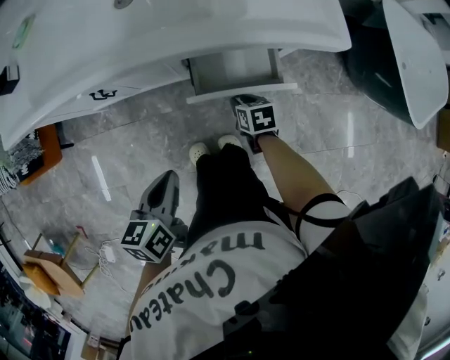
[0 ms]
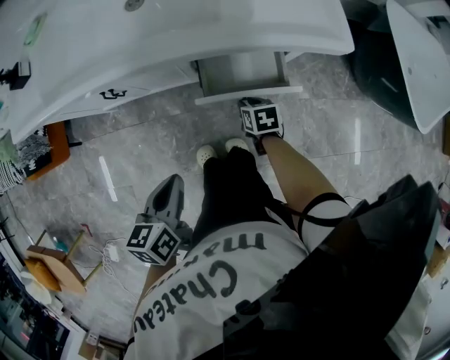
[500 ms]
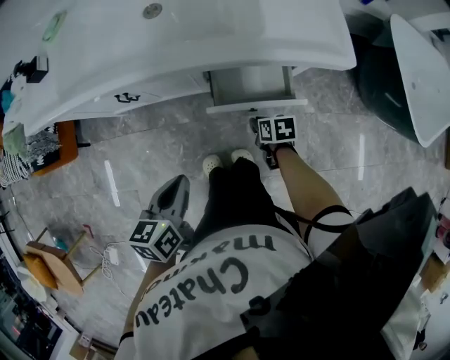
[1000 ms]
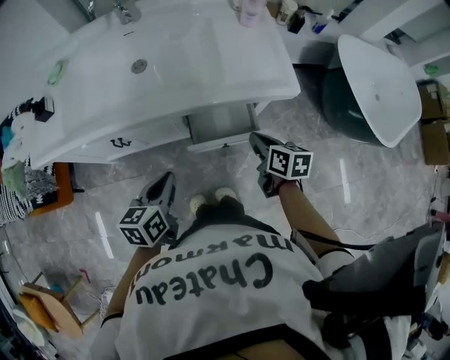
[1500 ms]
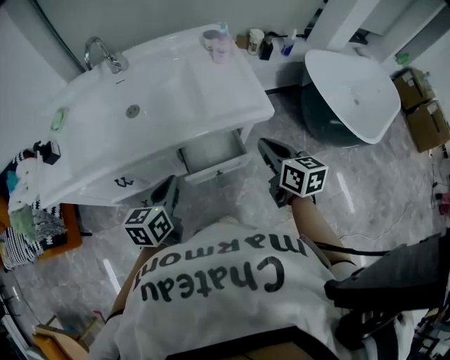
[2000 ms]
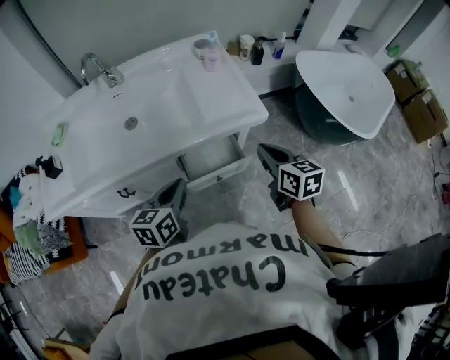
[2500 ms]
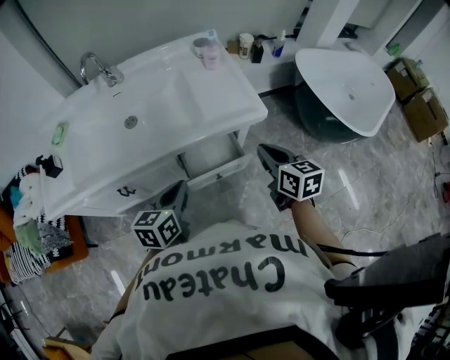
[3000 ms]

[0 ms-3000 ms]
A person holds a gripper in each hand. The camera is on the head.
0 ms to 1500 ms: The right gripper shifts approximately 20 cm upward, changes its angle by roughly 30 degrees, and closes. The left gripper shifts about 10 cm forward and upward.
1500 ms to 3000 ms: The right gripper is displaced upward and to the right by roughly 15 cm, and changes its angle by about 20 degrees, while the left gripper moves upward and to the right, some 10 cm.

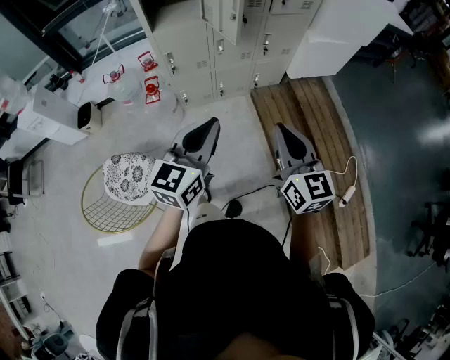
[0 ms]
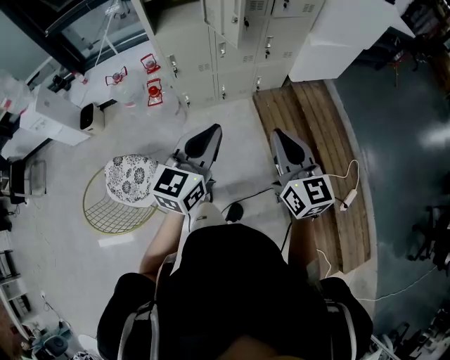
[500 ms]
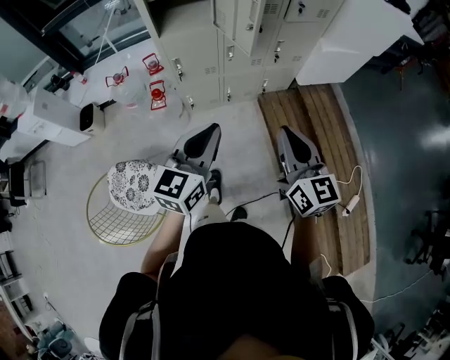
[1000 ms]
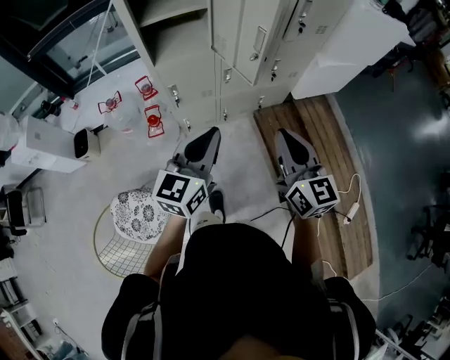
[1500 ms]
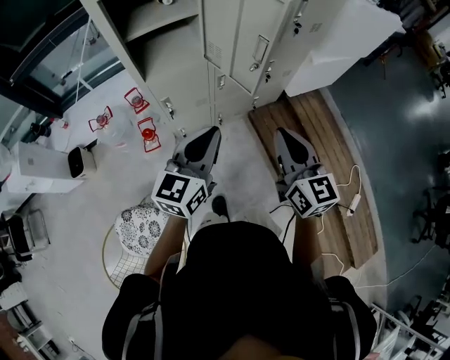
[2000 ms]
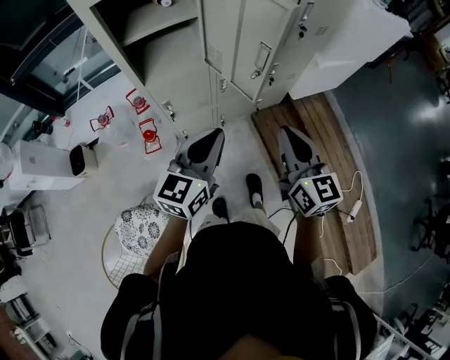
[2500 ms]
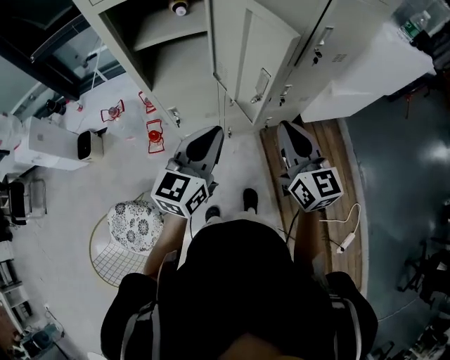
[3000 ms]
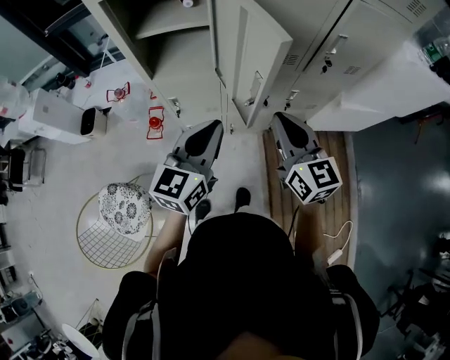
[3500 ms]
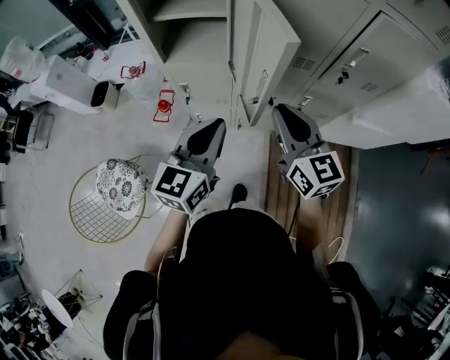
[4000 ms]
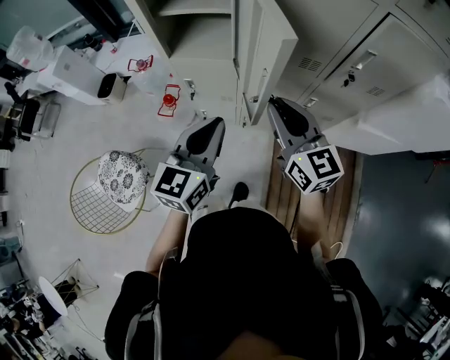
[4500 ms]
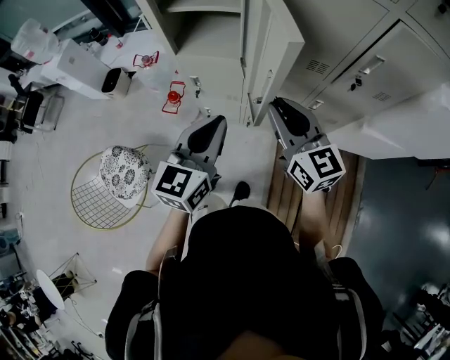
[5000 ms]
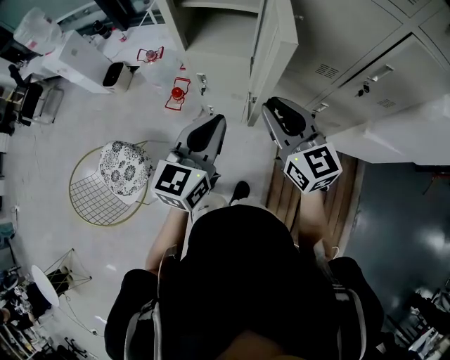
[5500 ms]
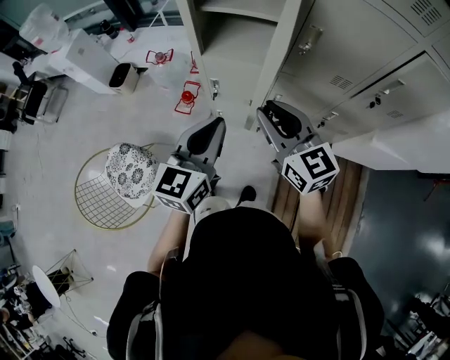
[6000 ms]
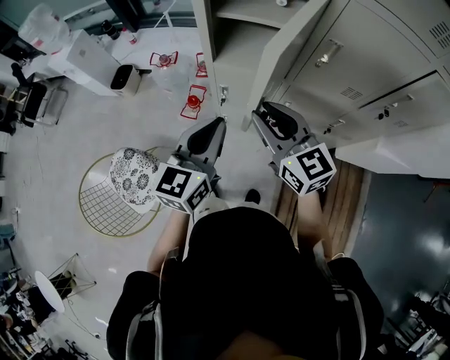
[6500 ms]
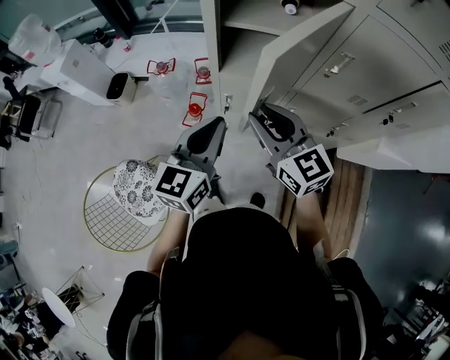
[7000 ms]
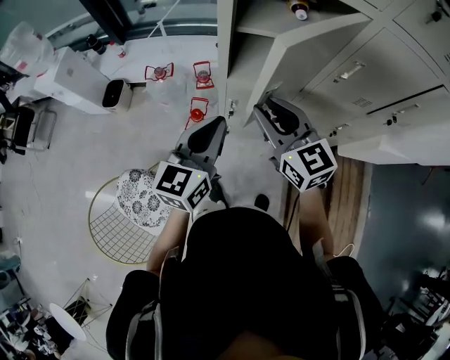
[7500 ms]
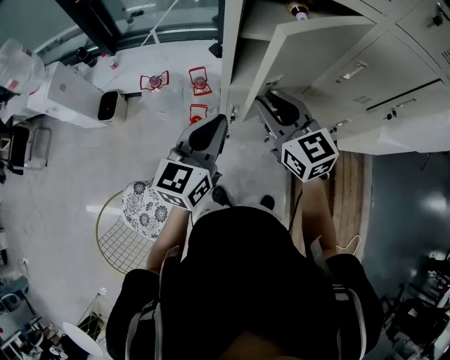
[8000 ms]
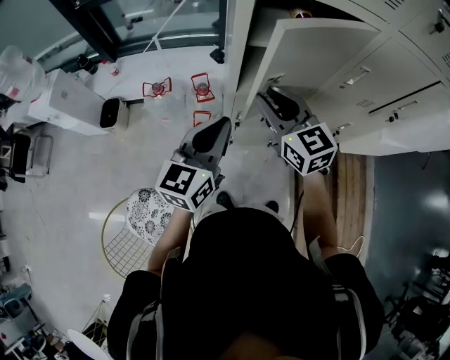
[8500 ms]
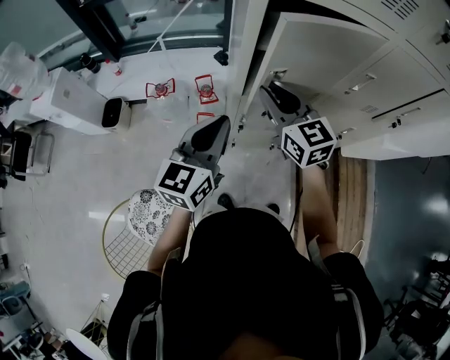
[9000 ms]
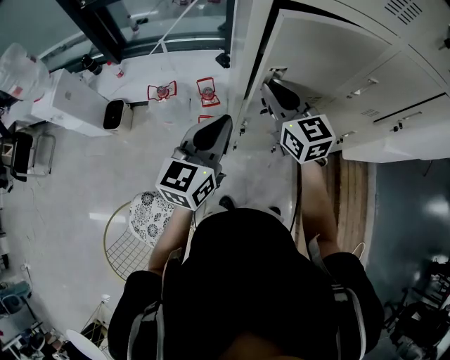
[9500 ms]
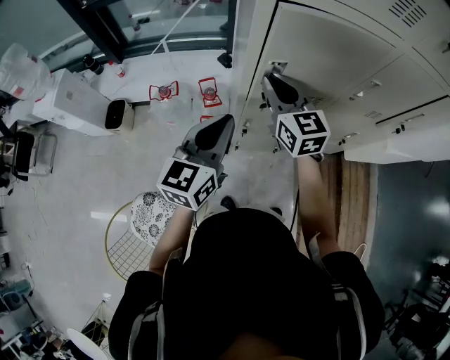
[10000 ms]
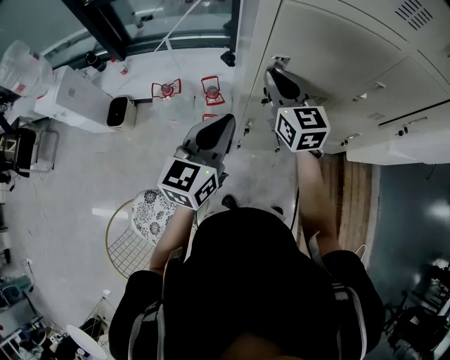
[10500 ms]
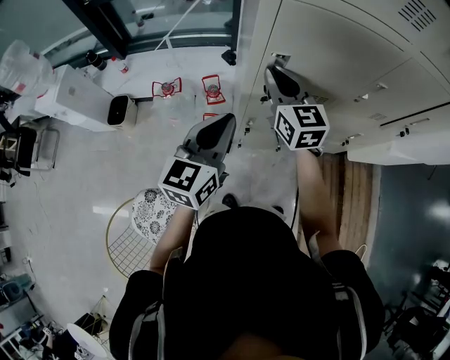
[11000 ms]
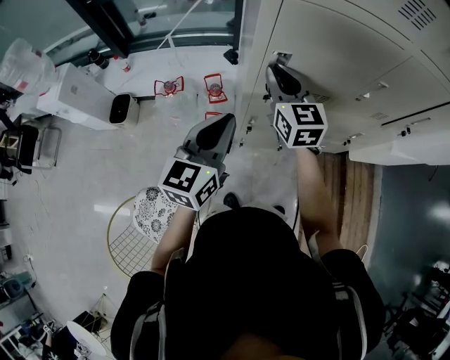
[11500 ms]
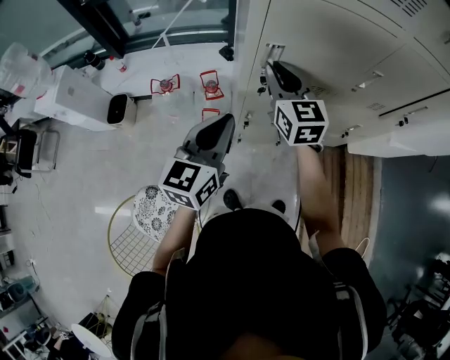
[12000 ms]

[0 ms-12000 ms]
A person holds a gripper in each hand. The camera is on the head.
0 ms to 2000 ms: Both grippers move forward and to the left, approximately 25 cm.
2000 ms to 4000 ms: The right gripper changes place by some 20 cm, and rotates approximately 30 degrees. The left gripper moves roughly 15 cm, and swivels approximately 30 degrees.
4000 ms to 6000 ms: The two grippers go roughly 10 cm to the left.
6000 ms to 8000 ms: Both grippers travel together to the left and forward, some 20 cm.
8000 ms to 10000 ms: The left gripper shifts by roughly 5 cm; the right gripper moves forward, roughly 10 cm.
10000 ms to 12000 ms: The grippers move only a little.

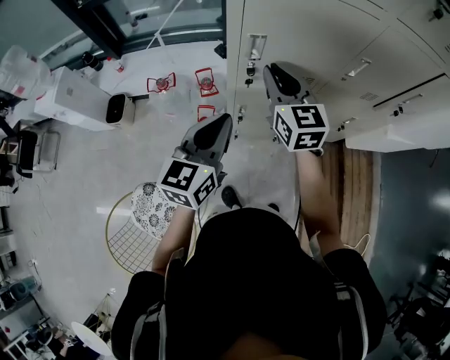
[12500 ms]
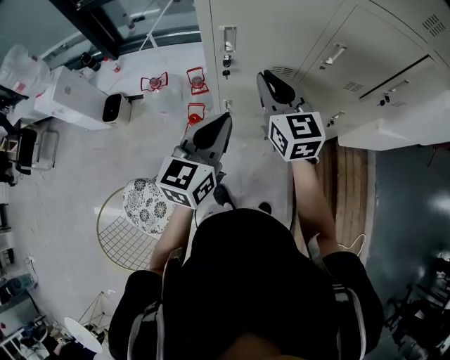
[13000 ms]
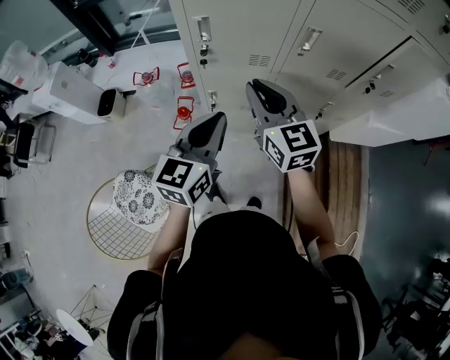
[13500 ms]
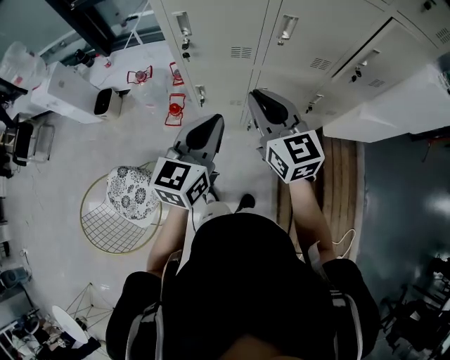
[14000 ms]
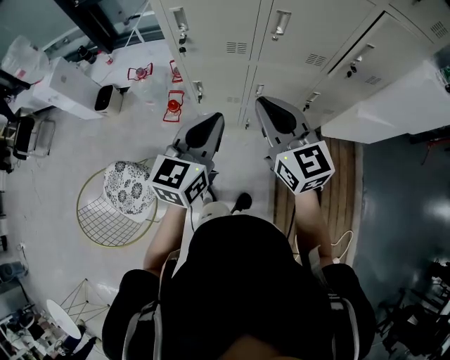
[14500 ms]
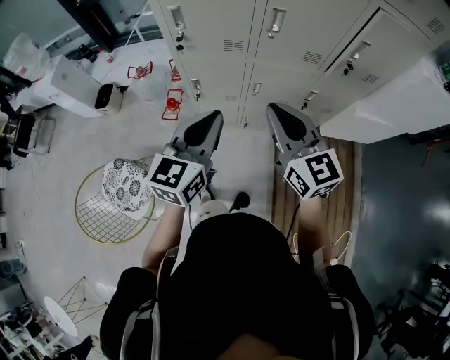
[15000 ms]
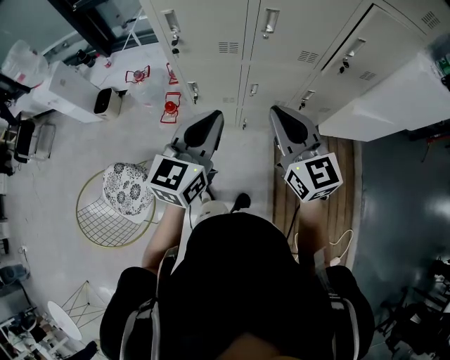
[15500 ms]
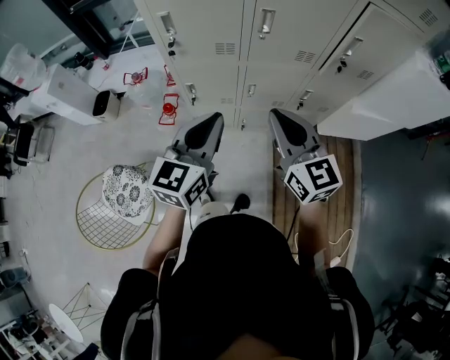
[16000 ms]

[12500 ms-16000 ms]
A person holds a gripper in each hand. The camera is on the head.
12500 ms to 14500 ms: The left gripper moves to the right and backward, approximately 25 cm. The right gripper is displaced backward and to the right by approximately 30 cm.
14500 ms to 16000 ms: The right gripper moves to the right, roughly 5 cm.

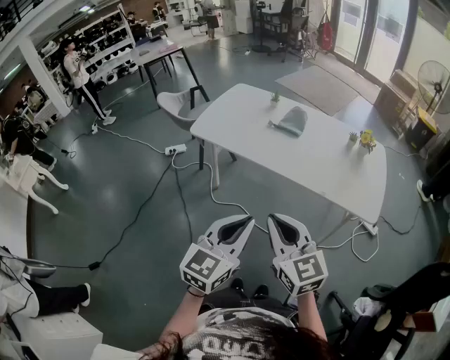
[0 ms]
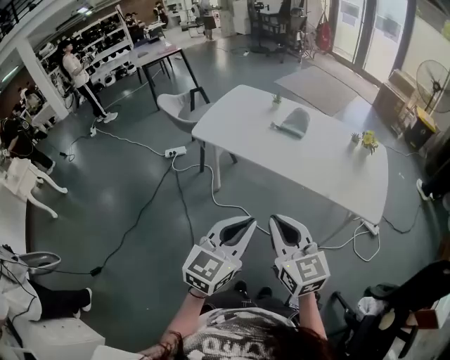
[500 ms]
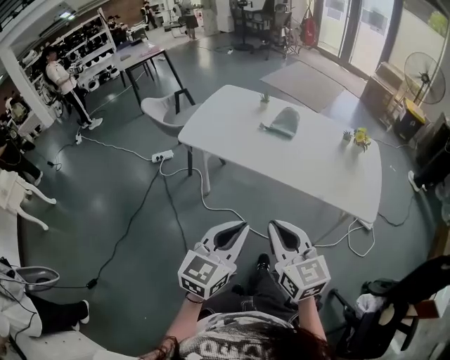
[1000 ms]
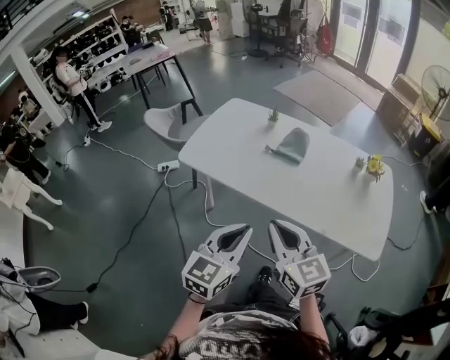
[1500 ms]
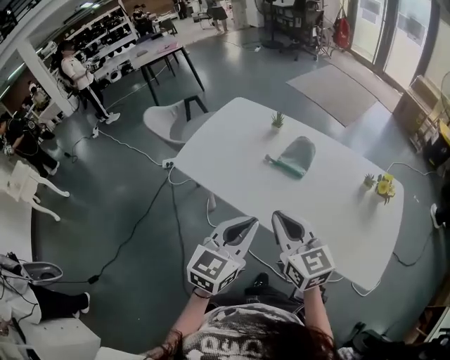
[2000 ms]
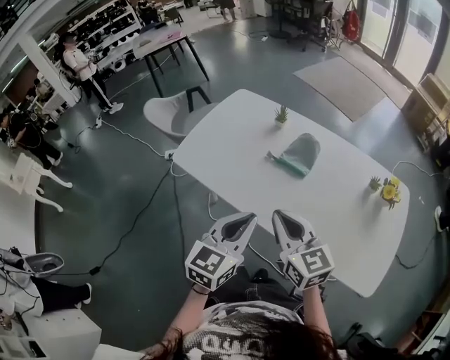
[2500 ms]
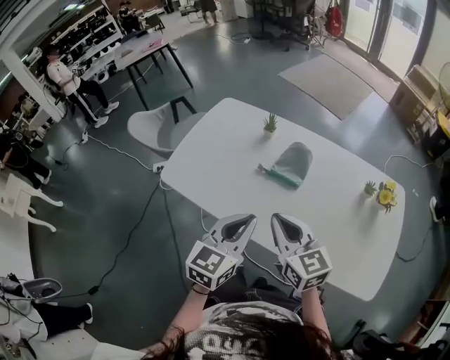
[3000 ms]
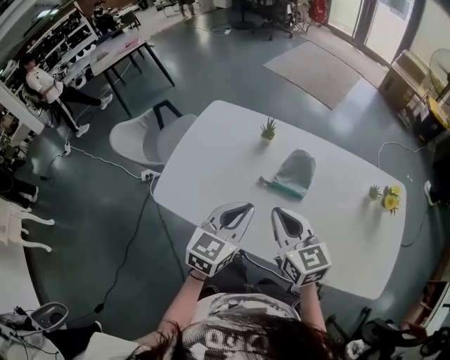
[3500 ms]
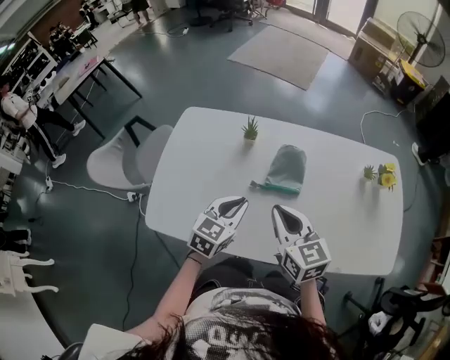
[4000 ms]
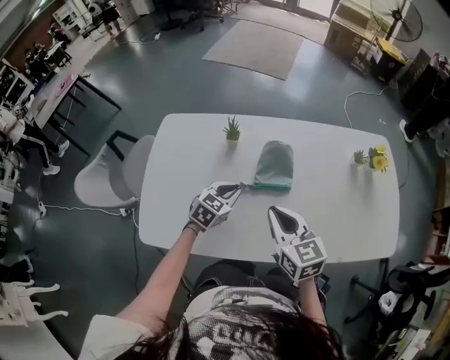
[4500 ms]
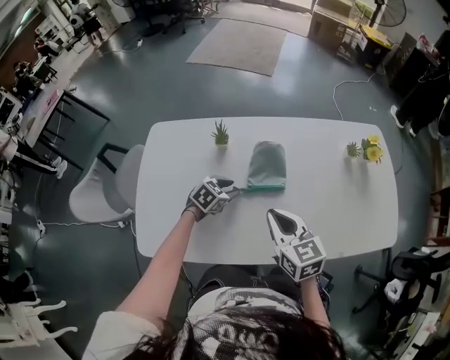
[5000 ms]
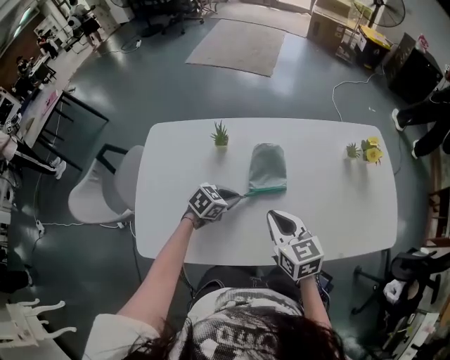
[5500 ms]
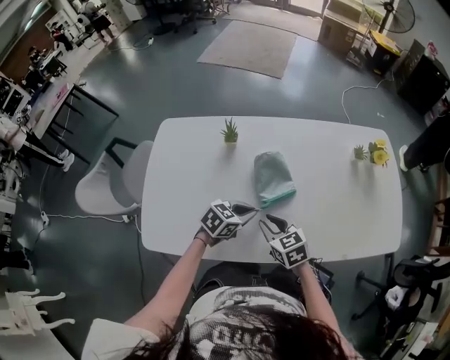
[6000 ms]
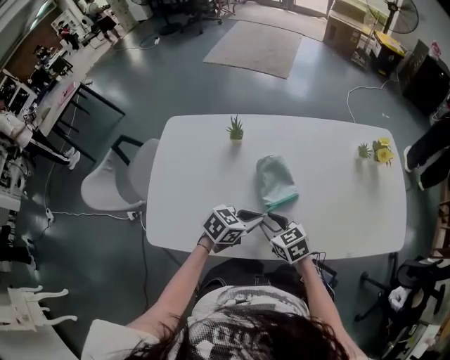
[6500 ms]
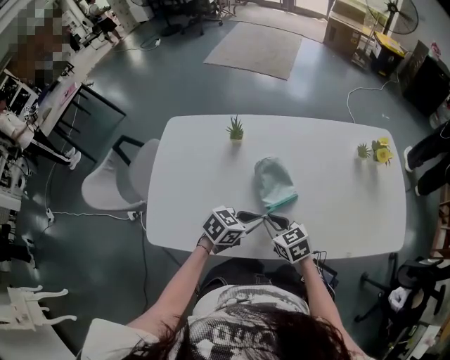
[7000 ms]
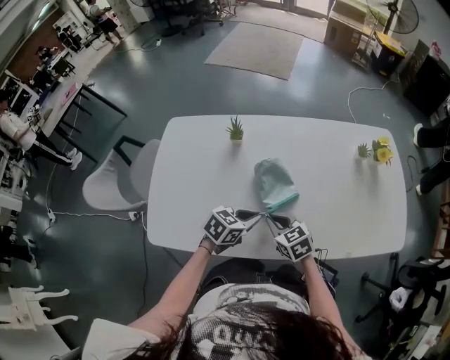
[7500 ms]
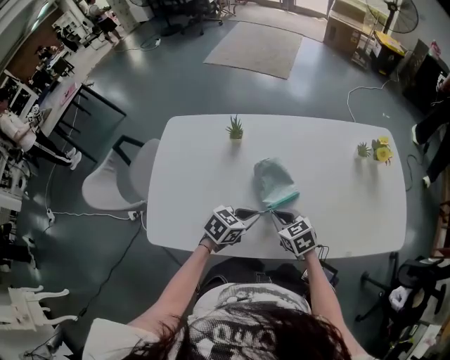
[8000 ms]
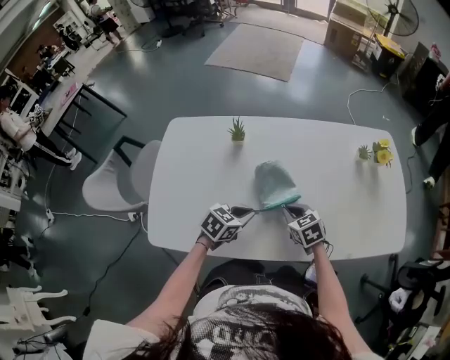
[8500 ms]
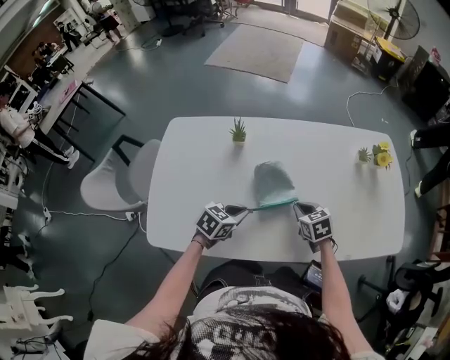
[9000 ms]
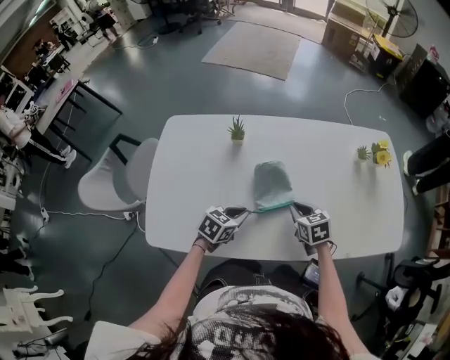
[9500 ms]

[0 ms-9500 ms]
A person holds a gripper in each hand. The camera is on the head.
0 ms to 2000 ms: Both grippers travel together forward, about 30 cm.
2000 ms to 4000 ms: The left gripper moves some 30 cm, and turns by roughly 30 degrees, while the right gripper shifts by approximately 25 cm, and turns by some 30 degrees.
4000 ms to 5500 ms: The right gripper travels downward by roughly 5 cm; the left gripper goes some 15 cm downward, turns by some 40 degrees, and opens and closes again.
5500 ms to 7500 ms: The right gripper travels downward by approximately 10 cm, rotates roughly 20 degrees, and opens and closes again, while the left gripper shifts some 10 cm backward and to the right.
7500 ms to 9500 ms: The left gripper moves to the left, some 5 cm. Meanwhile the right gripper is displaced to the right and forward by some 10 cm.
